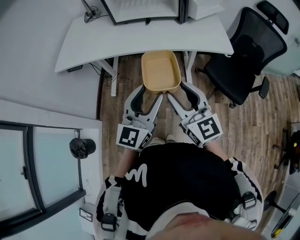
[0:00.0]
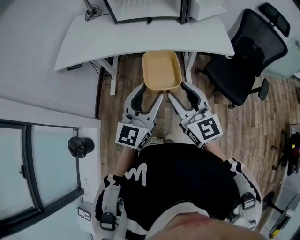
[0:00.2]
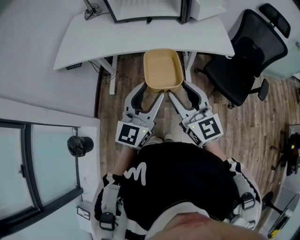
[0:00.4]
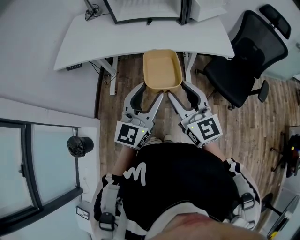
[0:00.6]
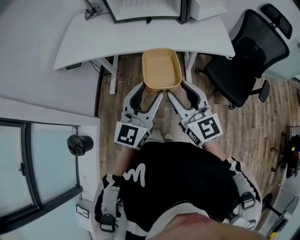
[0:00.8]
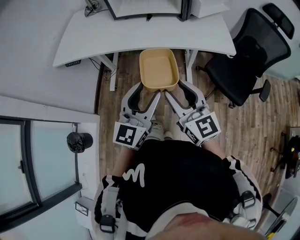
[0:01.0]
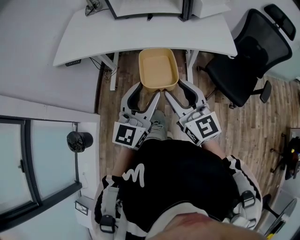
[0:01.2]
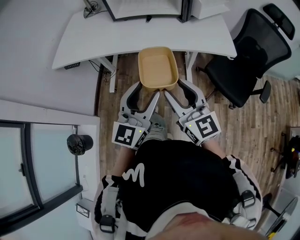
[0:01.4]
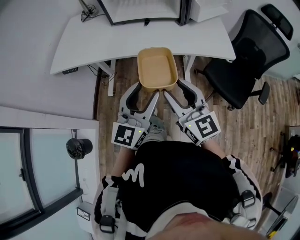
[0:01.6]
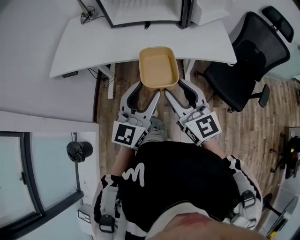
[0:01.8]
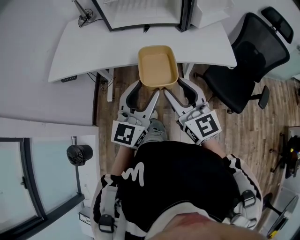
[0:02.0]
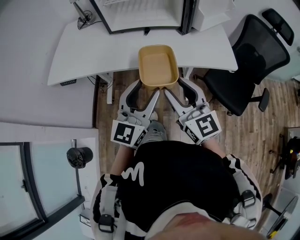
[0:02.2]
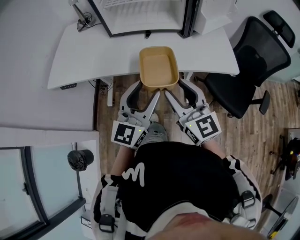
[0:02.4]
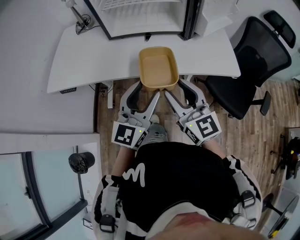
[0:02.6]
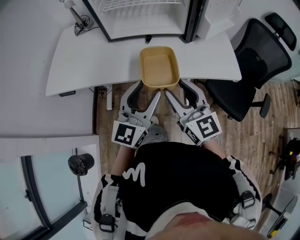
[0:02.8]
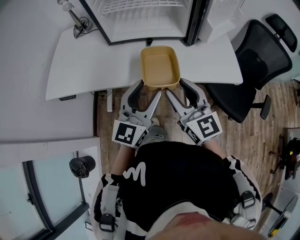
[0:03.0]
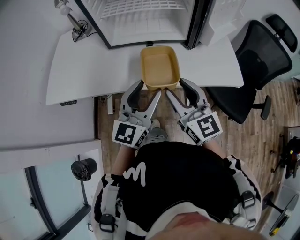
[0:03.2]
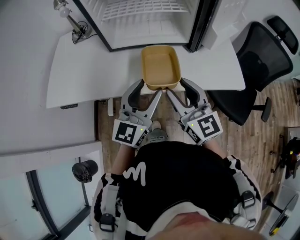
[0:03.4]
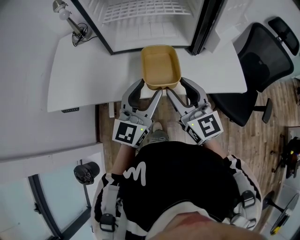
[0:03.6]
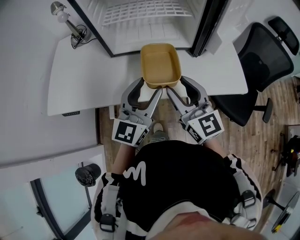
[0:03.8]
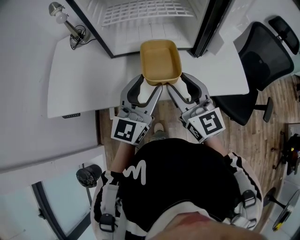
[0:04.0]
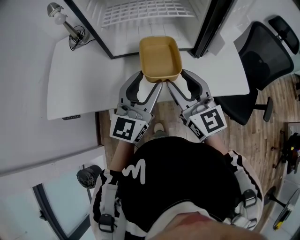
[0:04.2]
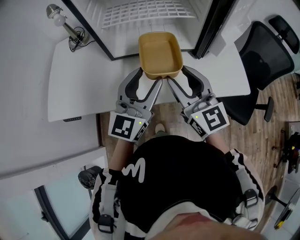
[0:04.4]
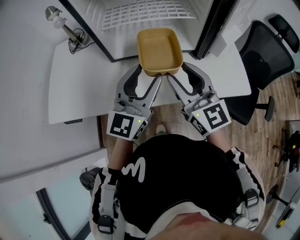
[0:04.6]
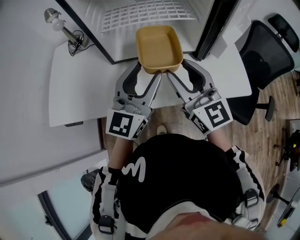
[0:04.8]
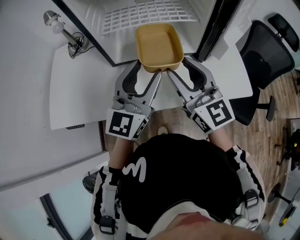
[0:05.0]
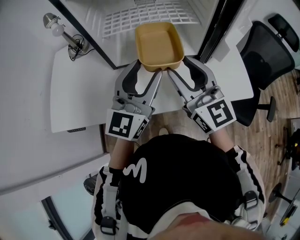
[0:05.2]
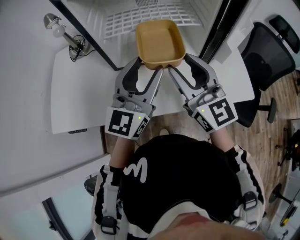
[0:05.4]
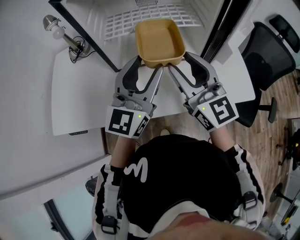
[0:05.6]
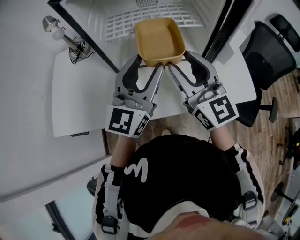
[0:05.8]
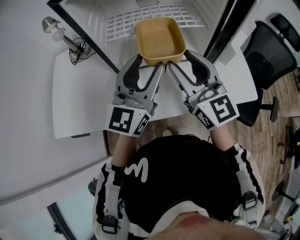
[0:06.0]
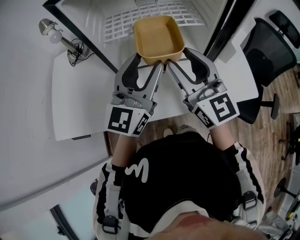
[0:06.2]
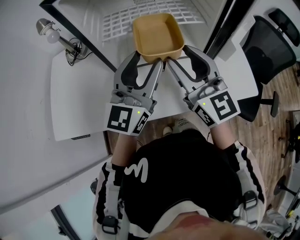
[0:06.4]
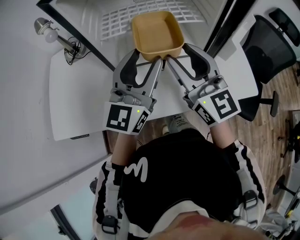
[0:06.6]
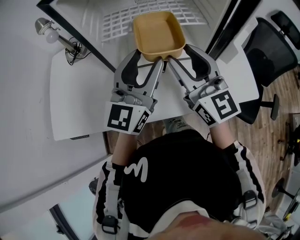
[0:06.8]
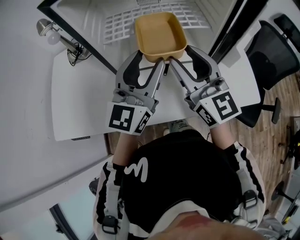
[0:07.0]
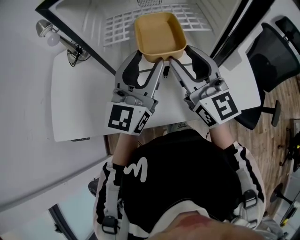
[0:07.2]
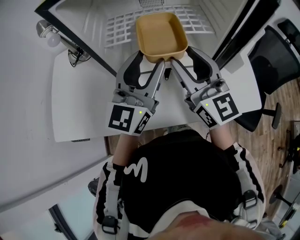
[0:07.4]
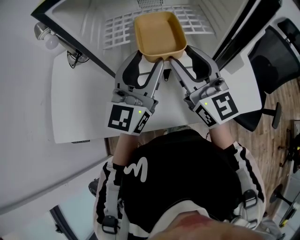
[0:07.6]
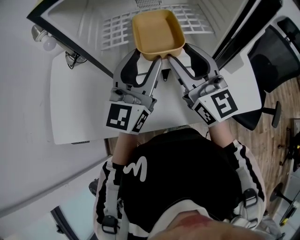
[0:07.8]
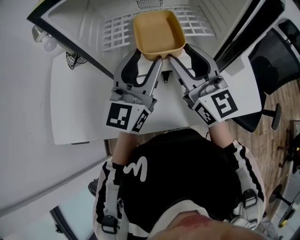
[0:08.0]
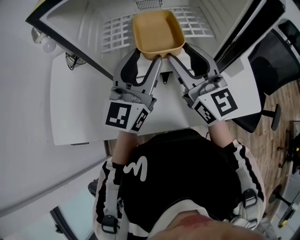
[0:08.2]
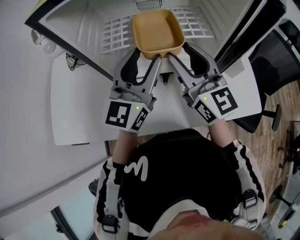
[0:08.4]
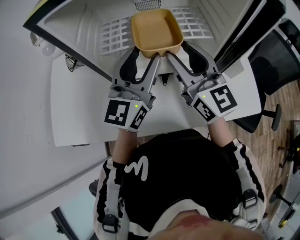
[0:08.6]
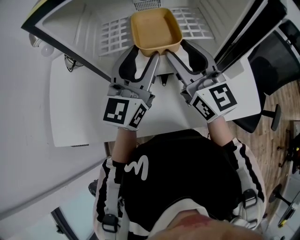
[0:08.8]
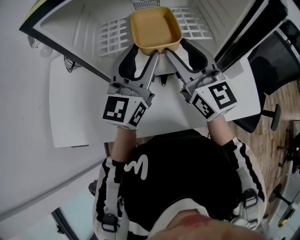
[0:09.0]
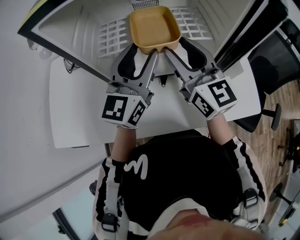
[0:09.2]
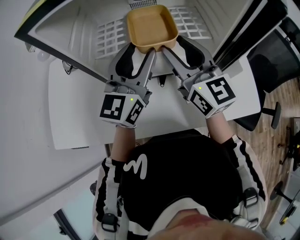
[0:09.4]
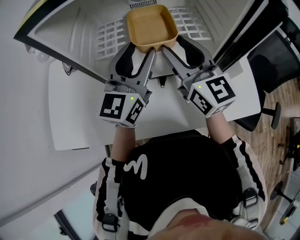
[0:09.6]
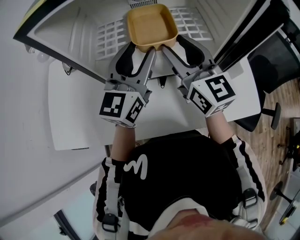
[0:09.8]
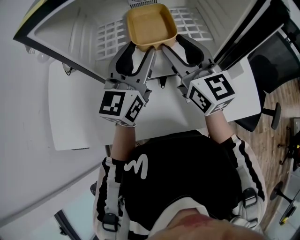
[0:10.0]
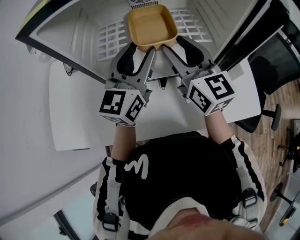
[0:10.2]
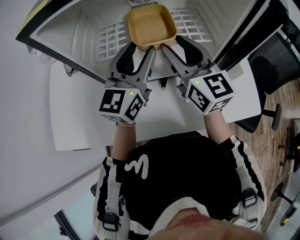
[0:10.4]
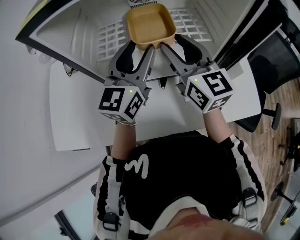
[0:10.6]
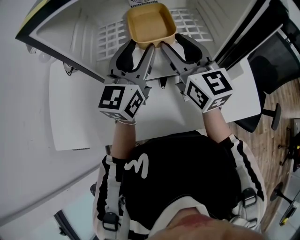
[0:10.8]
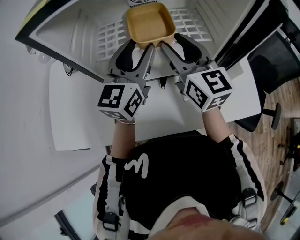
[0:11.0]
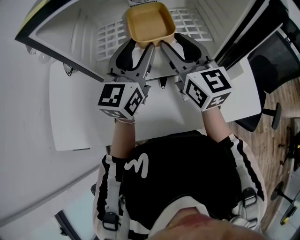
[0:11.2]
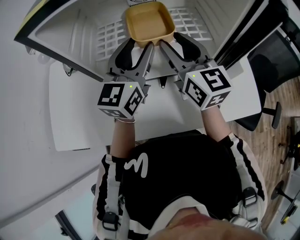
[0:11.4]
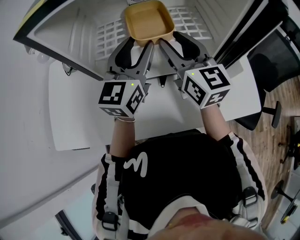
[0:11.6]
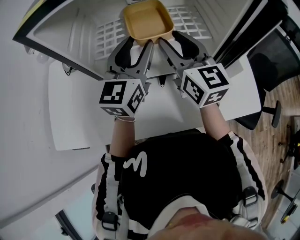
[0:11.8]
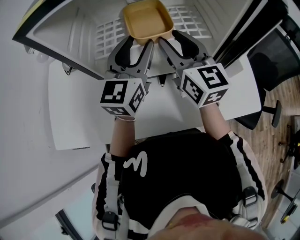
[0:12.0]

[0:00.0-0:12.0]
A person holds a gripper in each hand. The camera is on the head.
0.0 to 1.6 s: The two grippers go some 5 cm forward.
1.6 to 3.0 s: Both grippers move forward, approximately 15 cm.
3.0 to 4.4 s: Both grippers move forward, about 10 cm.
4.4 to 6.0 s: The right gripper shifts some 10 cm forward and upward. Meanwhile the left gripper shifts about 10 cm forward.
6.0 to 7.6 s: Both grippers travel together forward, approximately 5 cm.
7.6 to 9.0 s: The grippers move only a little.
9.0 to 12.0 s: The grippers move only a little.

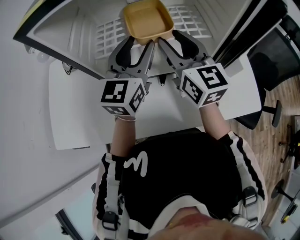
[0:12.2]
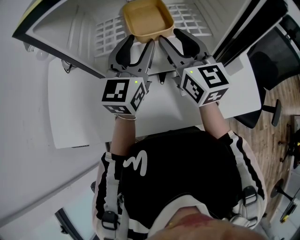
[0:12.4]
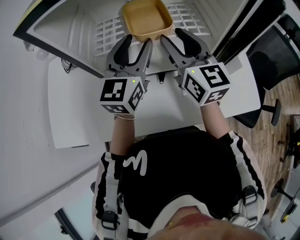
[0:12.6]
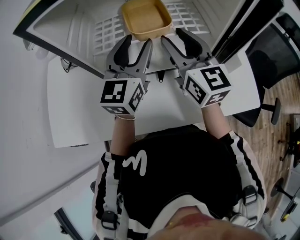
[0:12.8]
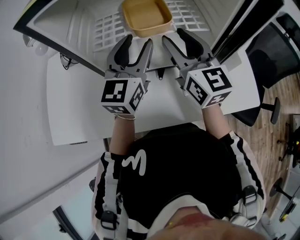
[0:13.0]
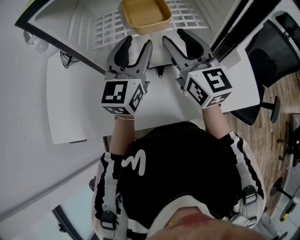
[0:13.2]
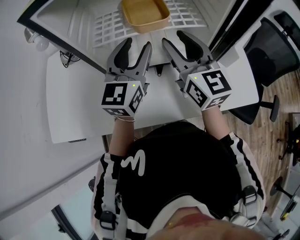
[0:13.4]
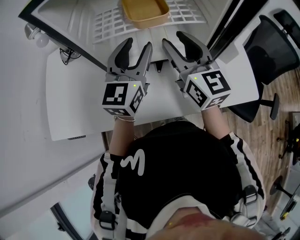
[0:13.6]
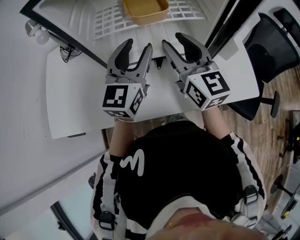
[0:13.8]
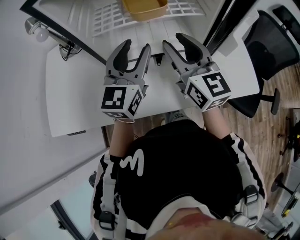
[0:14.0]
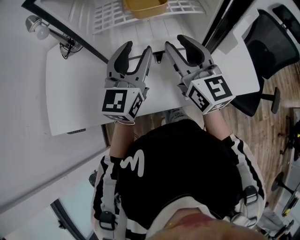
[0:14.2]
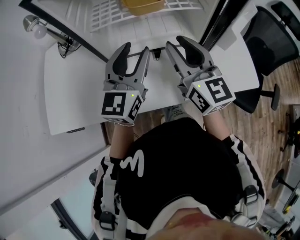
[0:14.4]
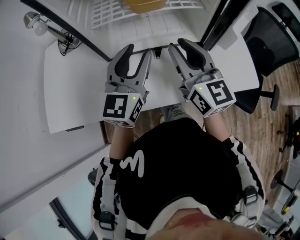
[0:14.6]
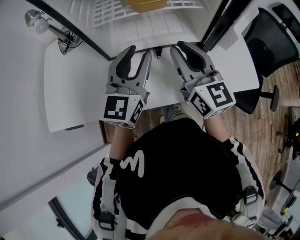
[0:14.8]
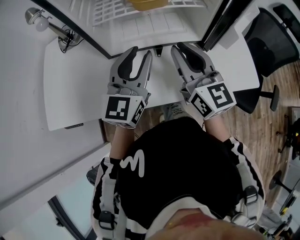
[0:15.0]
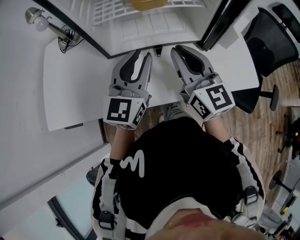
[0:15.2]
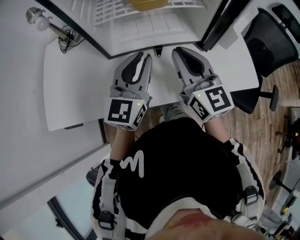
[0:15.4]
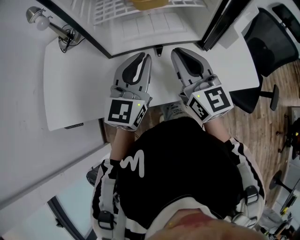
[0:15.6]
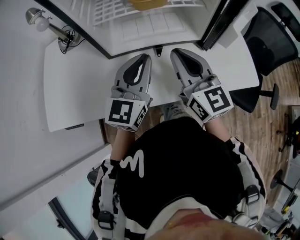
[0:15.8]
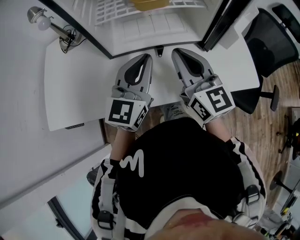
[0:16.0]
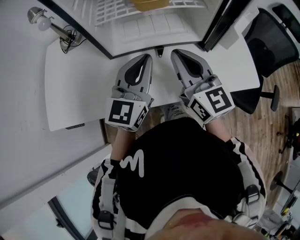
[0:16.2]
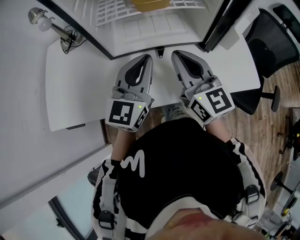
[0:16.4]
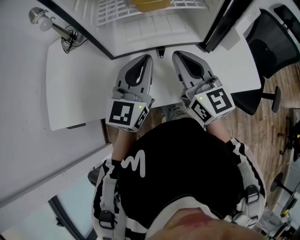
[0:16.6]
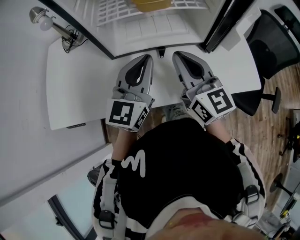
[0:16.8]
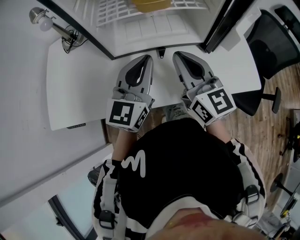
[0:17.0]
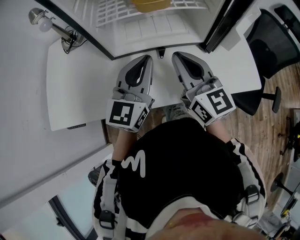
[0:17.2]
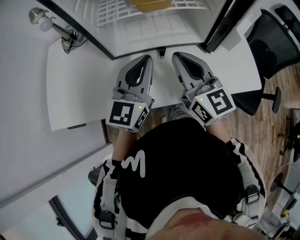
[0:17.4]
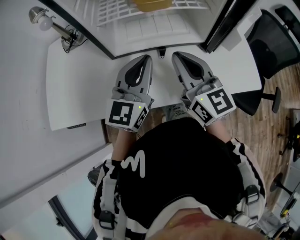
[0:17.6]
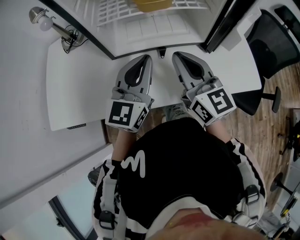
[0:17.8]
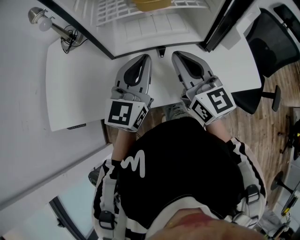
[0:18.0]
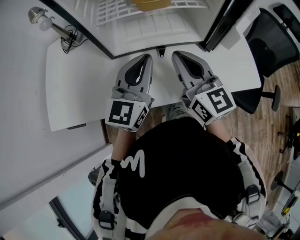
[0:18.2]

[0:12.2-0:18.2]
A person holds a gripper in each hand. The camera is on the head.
12.2 to 13.8 s: The two grippers go about 5 cm backward.
13.8 to 15.2 s: Both grippers travel together backward, approximately 5 cm. The right gripper closes up. The left gripper closes its fingers.
15.2 to 16.6 s: The left gripper closes.
16.6 to 18.2 s: Both grippers stay put.

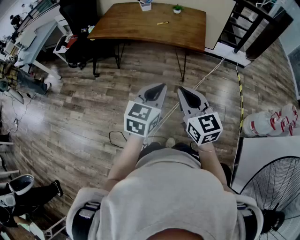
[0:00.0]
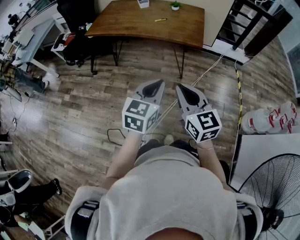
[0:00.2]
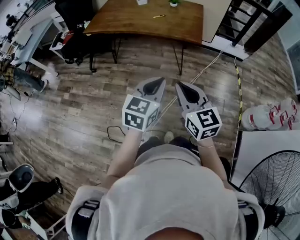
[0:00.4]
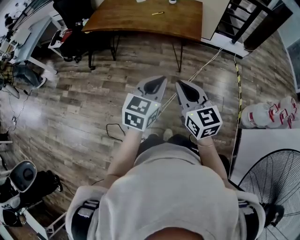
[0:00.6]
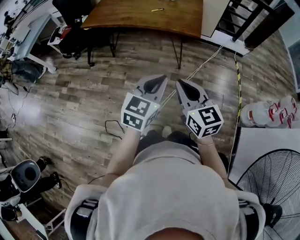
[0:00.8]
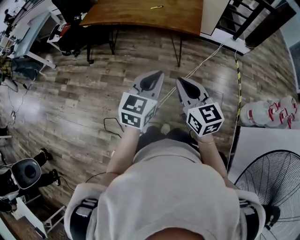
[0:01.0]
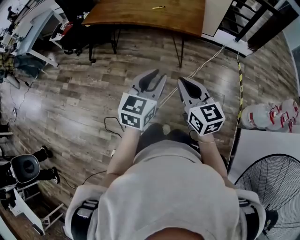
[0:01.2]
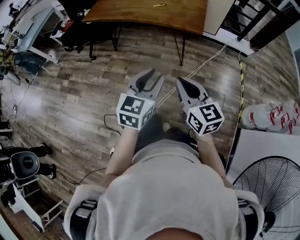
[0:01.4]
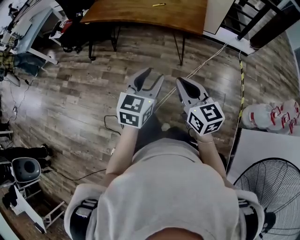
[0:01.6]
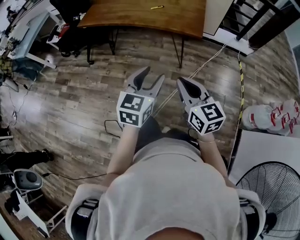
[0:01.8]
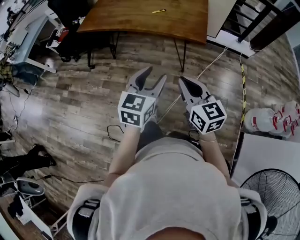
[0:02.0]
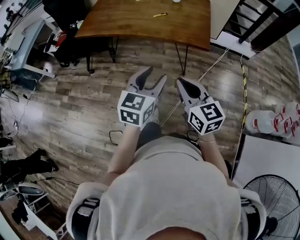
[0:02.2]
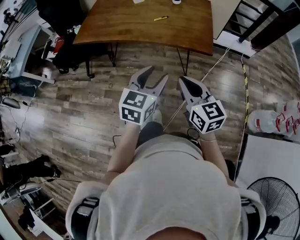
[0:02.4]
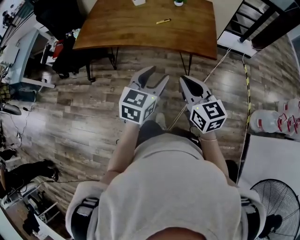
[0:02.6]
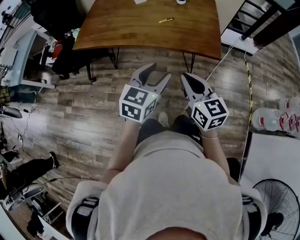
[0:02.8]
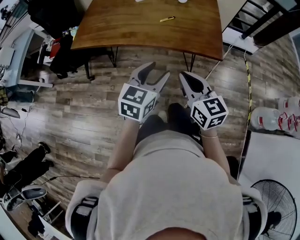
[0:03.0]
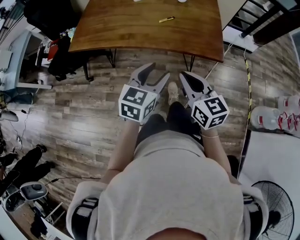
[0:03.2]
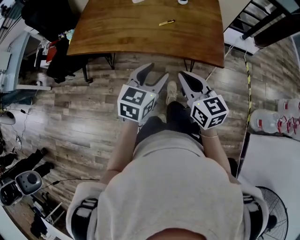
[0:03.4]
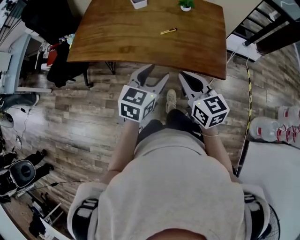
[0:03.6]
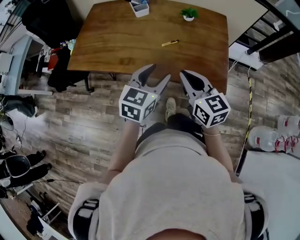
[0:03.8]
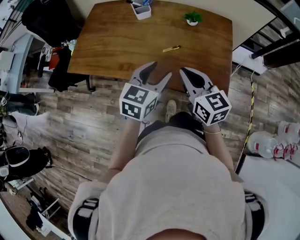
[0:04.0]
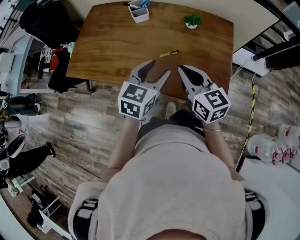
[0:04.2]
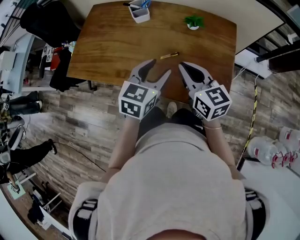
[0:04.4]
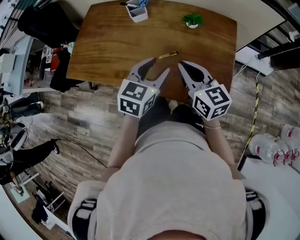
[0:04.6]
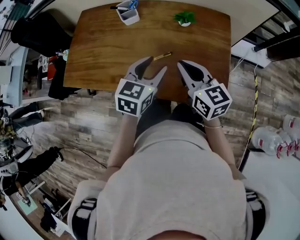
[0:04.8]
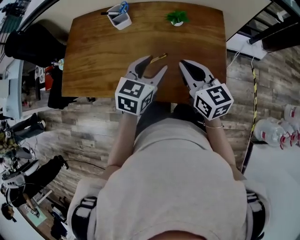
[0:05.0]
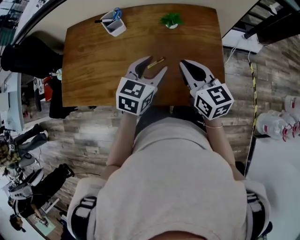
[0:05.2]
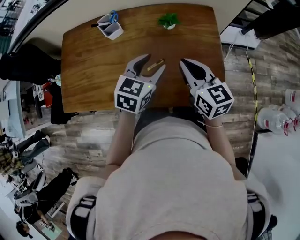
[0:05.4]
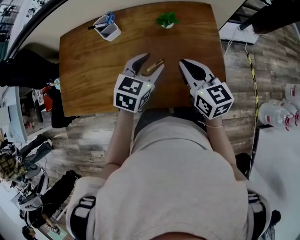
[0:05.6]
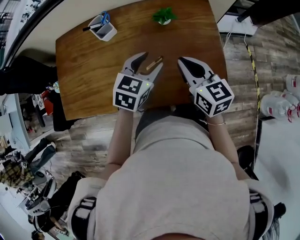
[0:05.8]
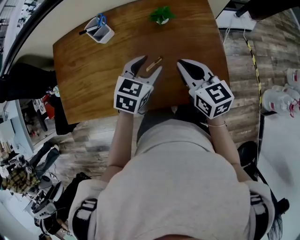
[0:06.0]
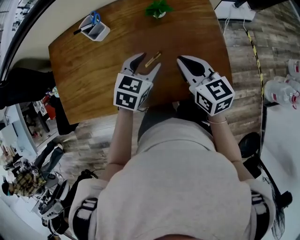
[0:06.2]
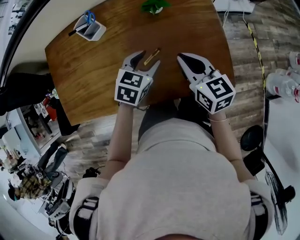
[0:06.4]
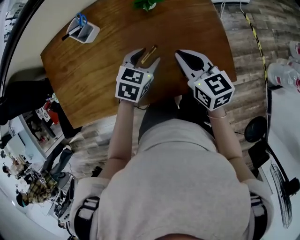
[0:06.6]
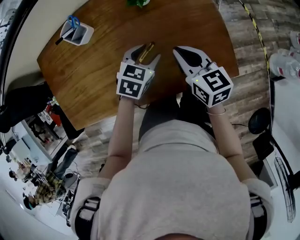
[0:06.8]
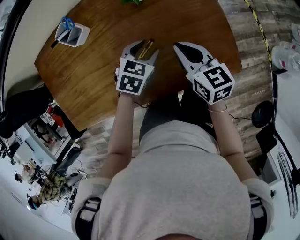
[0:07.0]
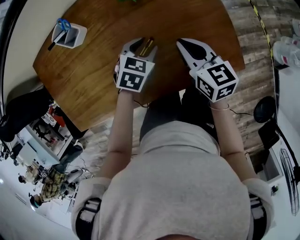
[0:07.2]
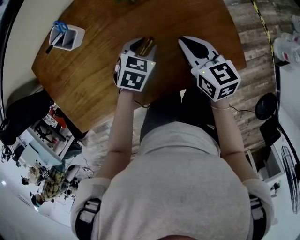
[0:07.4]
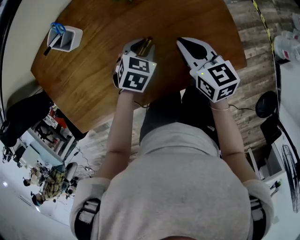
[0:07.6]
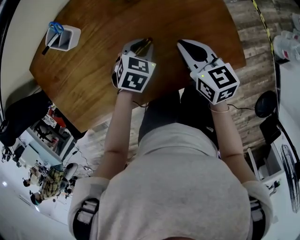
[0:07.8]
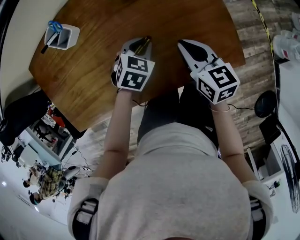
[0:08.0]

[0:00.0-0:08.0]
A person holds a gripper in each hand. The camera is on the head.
0.0 to 1.6 s: The left gripper opens up. The right gripper moves roughly 5 cm.
1.6 to 3.2 s: The right gripper shifts roughly 30 cm forward and to the left. The left gripper moves forward, roughly 30 cm.
3.2 to 4.8 s: The two grippers go some 30 cm forward.
4.8 to 6.4 s: The left gripper travels downward and forward by roughly 15 cm, and rotates roughly 30 degrees. The right gripper goes approximately 10 cm downward and forward, and rotates about 20 degrees.
6.4 to 8.0 s: Both grippers travel together downward, about 10 cm. The left gripper changes its angle by roughly 20 degrees, and closes up.
